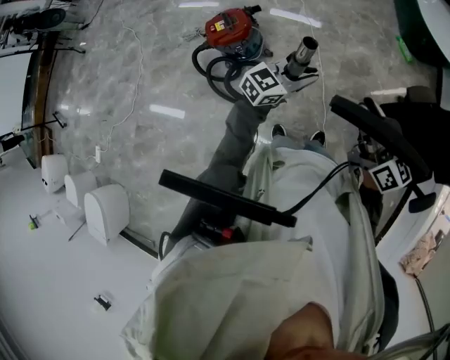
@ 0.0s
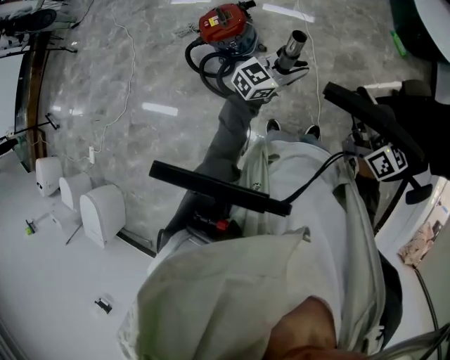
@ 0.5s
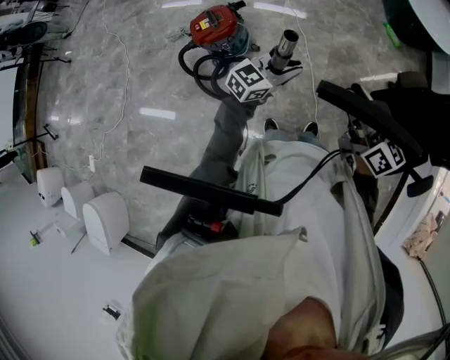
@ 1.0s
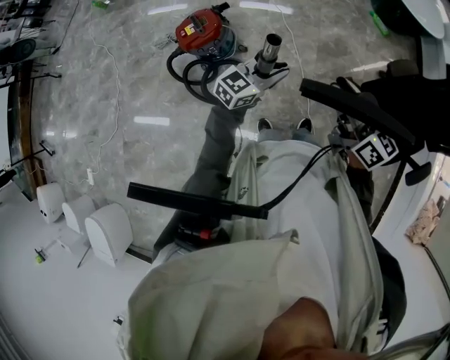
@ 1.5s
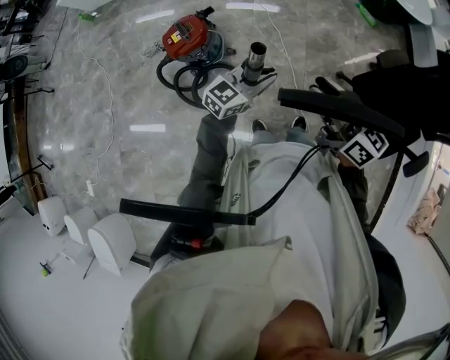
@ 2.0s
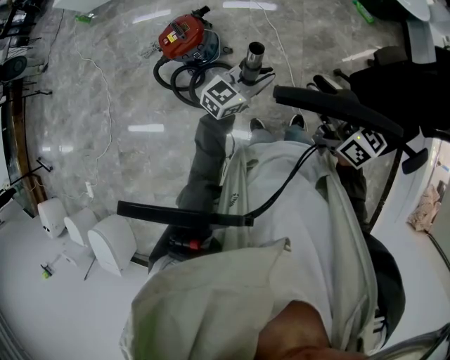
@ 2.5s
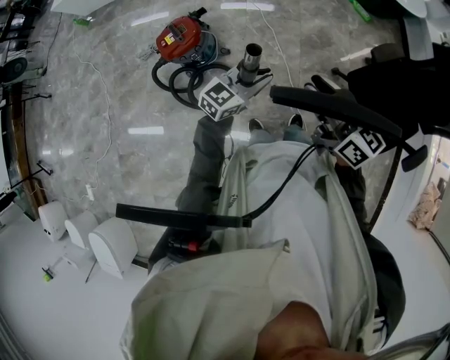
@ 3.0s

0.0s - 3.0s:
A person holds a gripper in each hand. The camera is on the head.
0.0s - 3.0s: The grippers stay close to where they were, moving slightly.

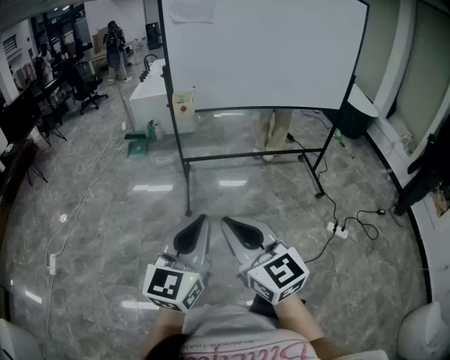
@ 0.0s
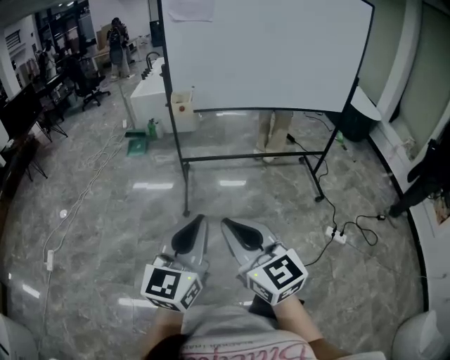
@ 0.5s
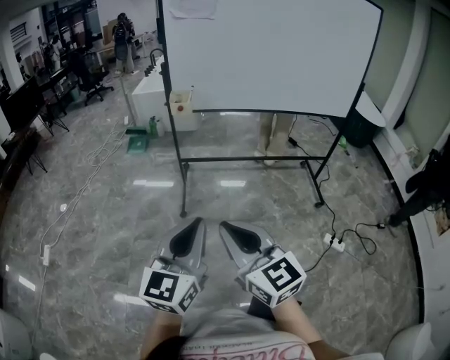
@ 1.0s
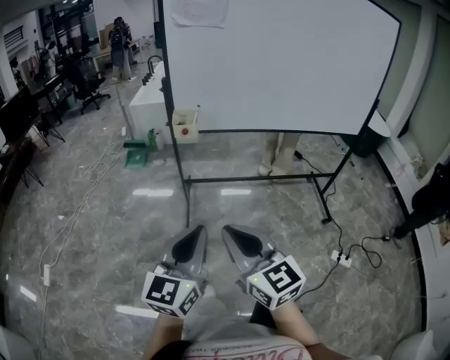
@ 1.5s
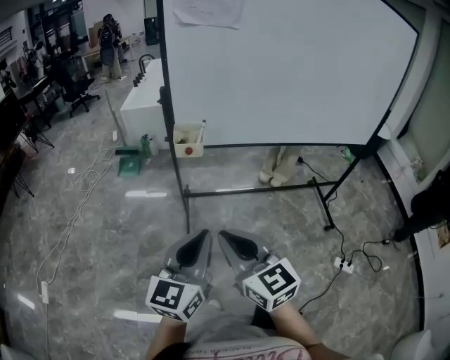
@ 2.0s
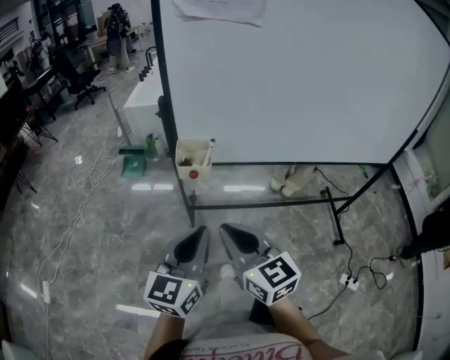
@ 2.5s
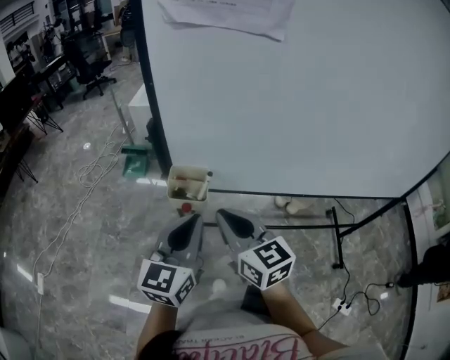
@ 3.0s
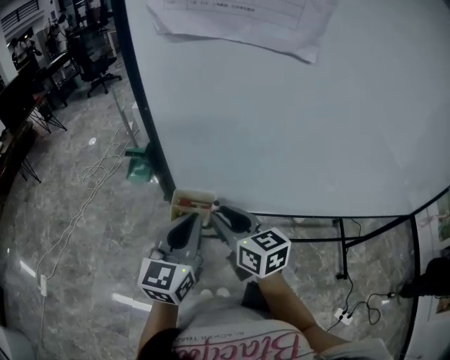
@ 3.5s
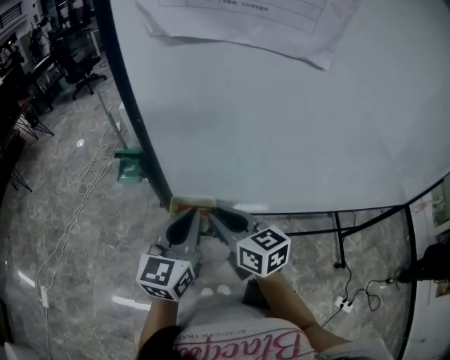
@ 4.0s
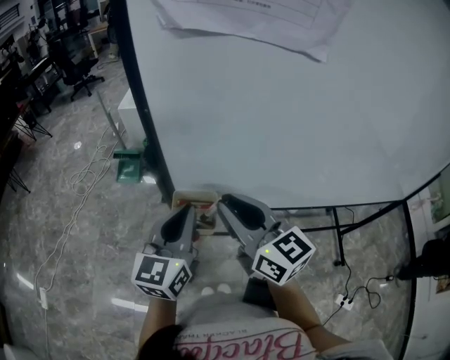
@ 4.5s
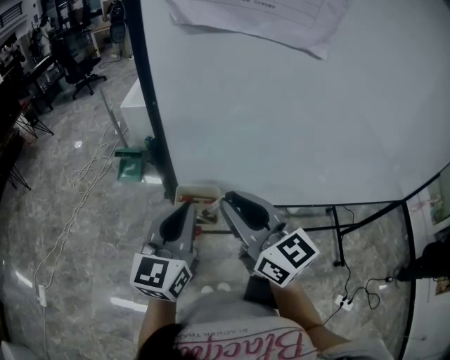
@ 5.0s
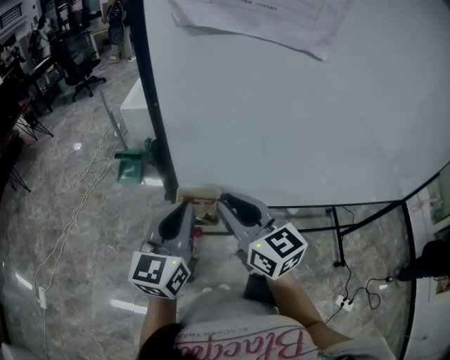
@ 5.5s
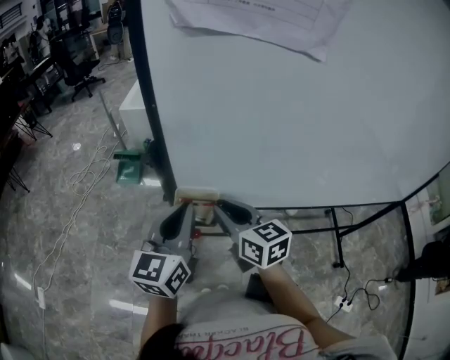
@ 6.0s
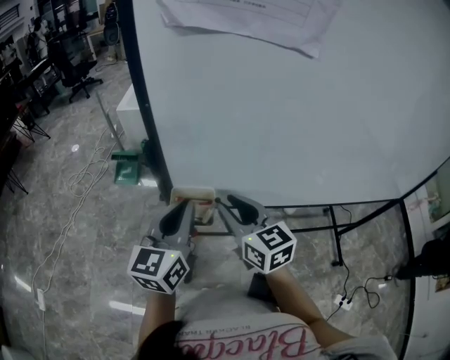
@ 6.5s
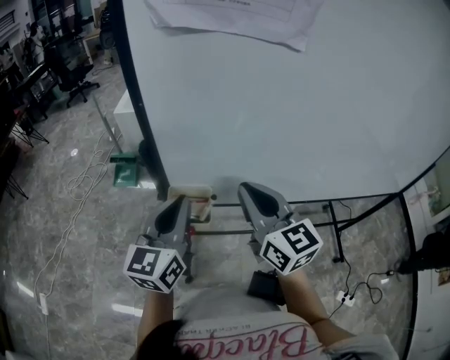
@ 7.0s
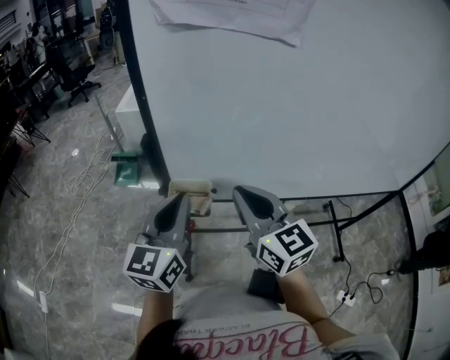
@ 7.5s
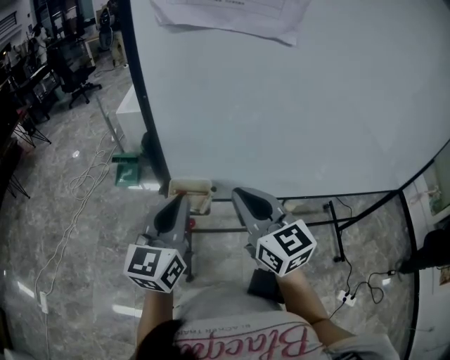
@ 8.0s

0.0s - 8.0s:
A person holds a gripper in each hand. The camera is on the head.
0.0s - 2.0s: Both grippers move forward, approximately 25 cm.
2.0s - 4.0s: Both grippers travel together forward, about 35 cm. The right gripper swivels roughly 20 degrees.
4.0s - 6.0s: The right gripper travels upward and back again, about 10 cm each way.
6.0s - 8.0s: The right gripper shifts approximately 10 cm upward.

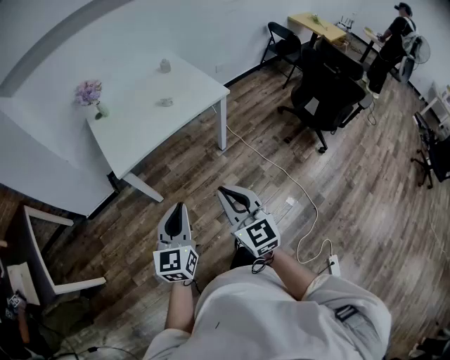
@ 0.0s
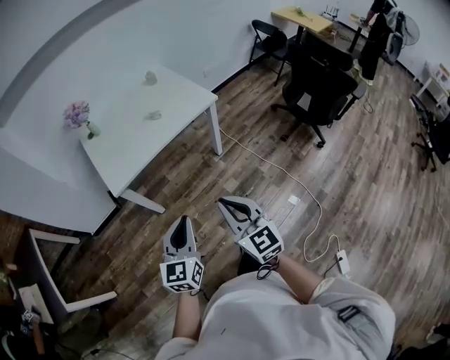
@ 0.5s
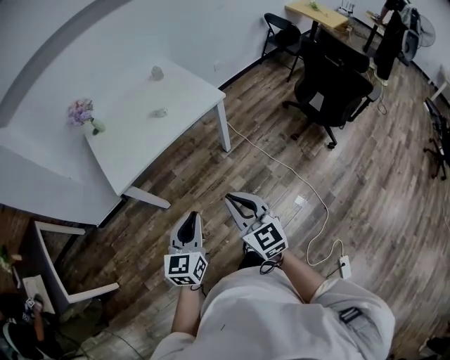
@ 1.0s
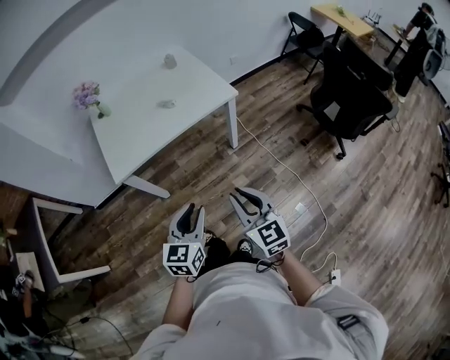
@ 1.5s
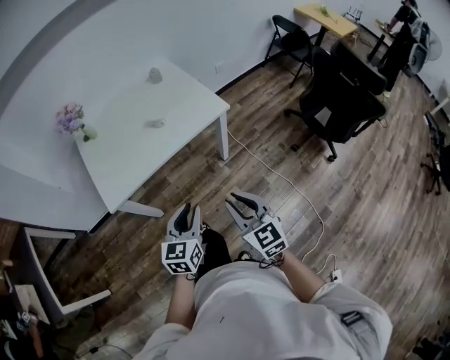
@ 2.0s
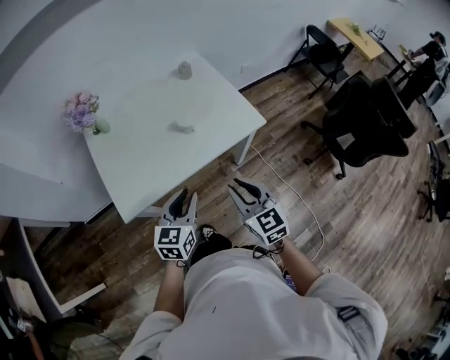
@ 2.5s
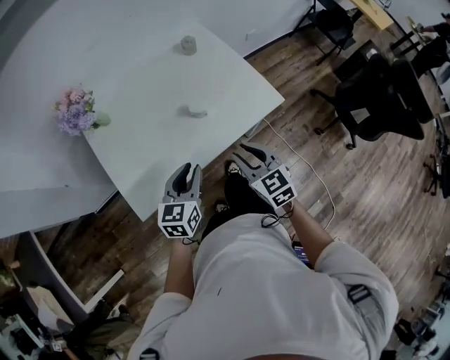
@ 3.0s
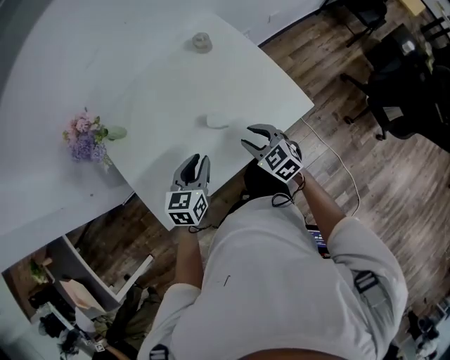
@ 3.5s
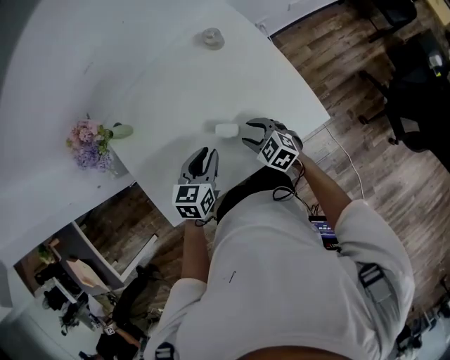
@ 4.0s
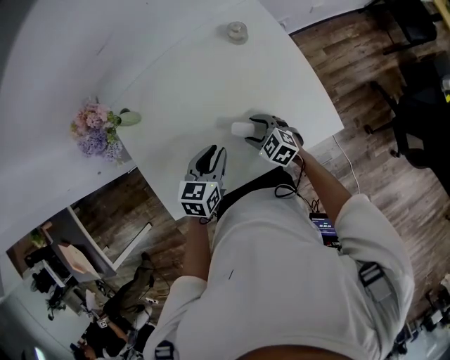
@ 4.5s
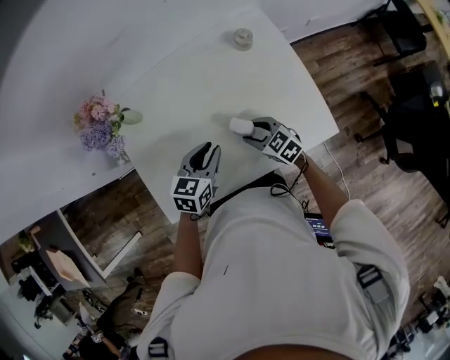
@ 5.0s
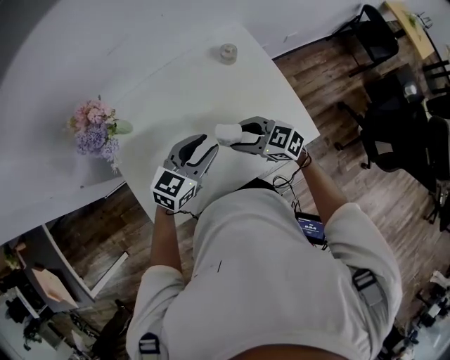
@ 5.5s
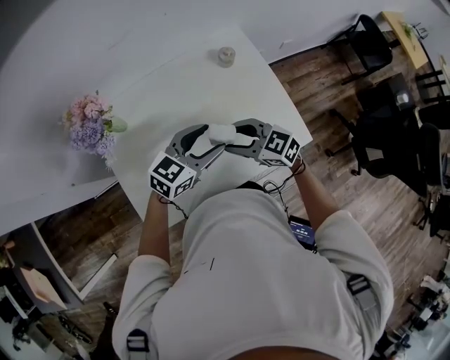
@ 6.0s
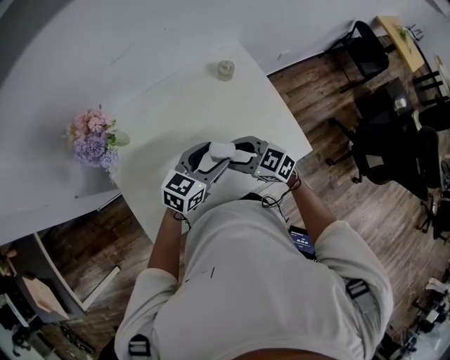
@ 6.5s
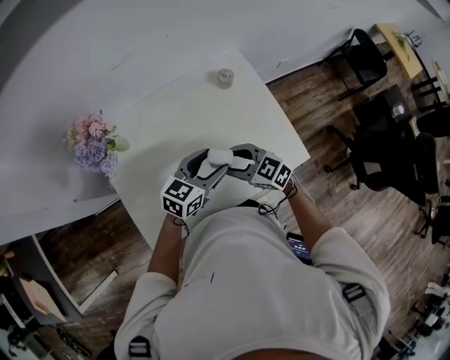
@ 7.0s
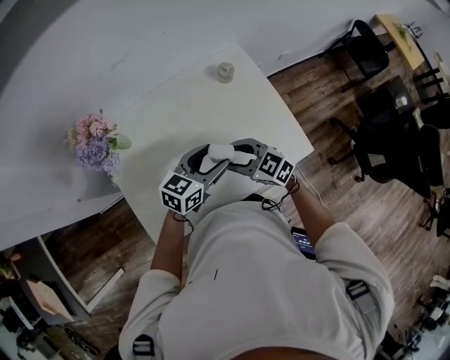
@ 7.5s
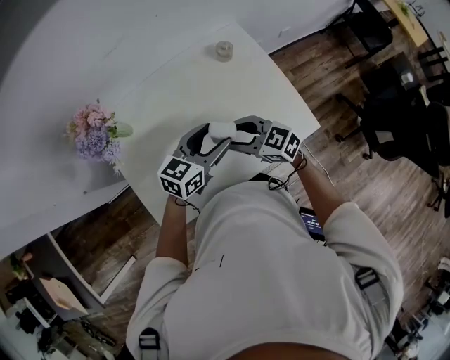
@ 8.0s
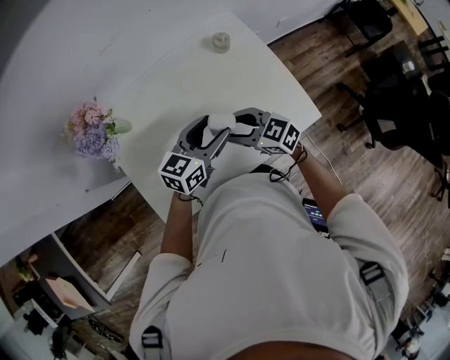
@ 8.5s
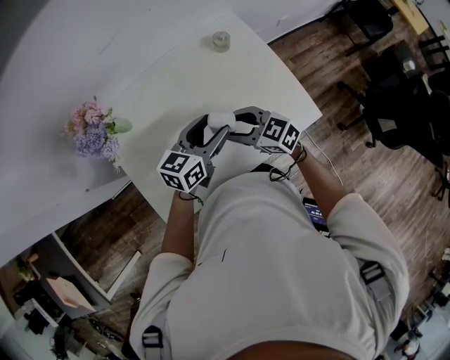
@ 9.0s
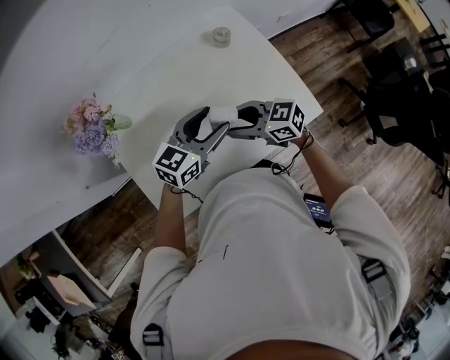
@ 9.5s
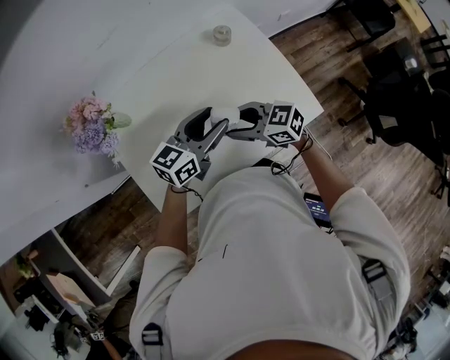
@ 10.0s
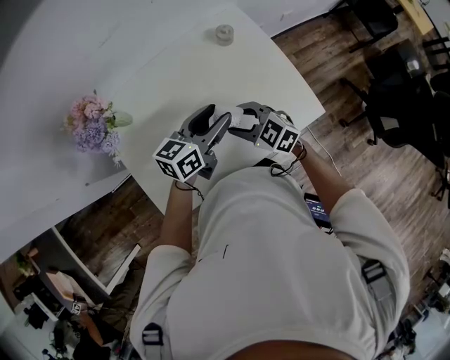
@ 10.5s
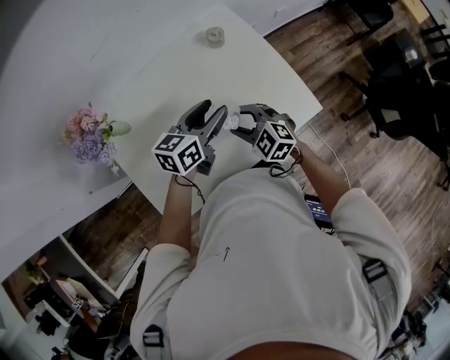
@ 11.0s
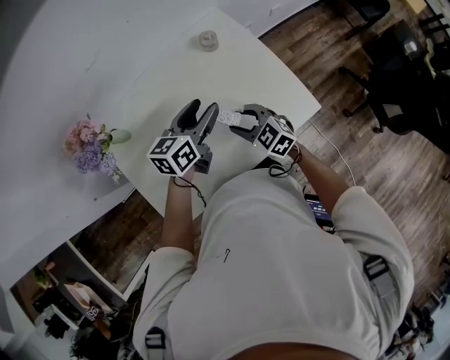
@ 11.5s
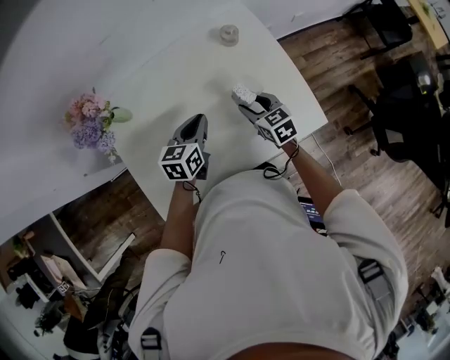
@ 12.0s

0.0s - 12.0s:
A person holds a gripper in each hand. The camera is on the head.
0.0s - 2.0s: Both grippers move forward, to the right and downward, approximately 25 cm.
2.0s - 4.0s: The pair of grippers is taken forward, approximately 50 cm. The right gripper travels downward by some 20 cm, changes its angle by approximately 40 degrees, and opens. The left gripper rotates approximately 20 degrees.
4.0s - 6.0s: The grippers both shift upward by about 10 cm. The left gripper turns by some 30 degrees, and opens; the right gripper swivels some 20 degrees.
6.0s - 8.0s: The grippers move only a little.
8.0s - 10.0s: The grippers stay close to where they were, moving slightly.
10.0s - 12.0s: The right gripper shifts by roughly 15 cm, and changes its angle by some 40 degrees, while the left gripper is displaced downward by roughly 10 cm, changes its angle by approximately 30 degrees, and closes up.

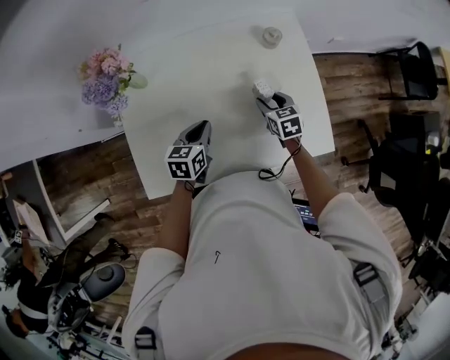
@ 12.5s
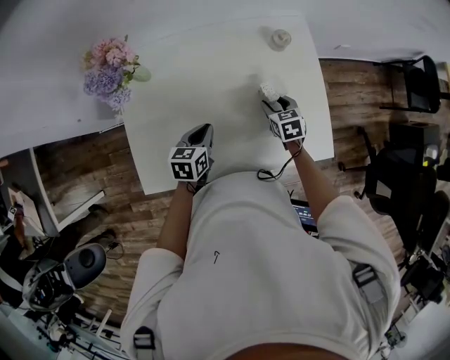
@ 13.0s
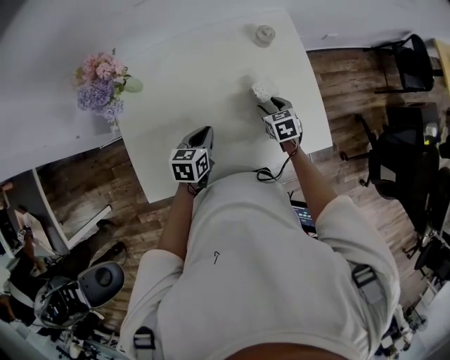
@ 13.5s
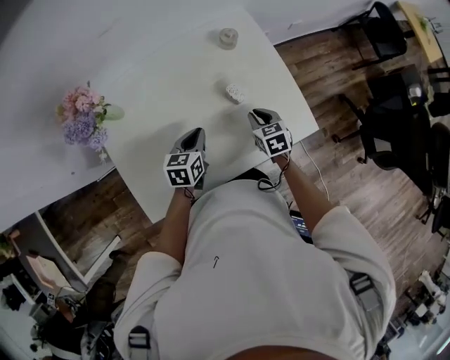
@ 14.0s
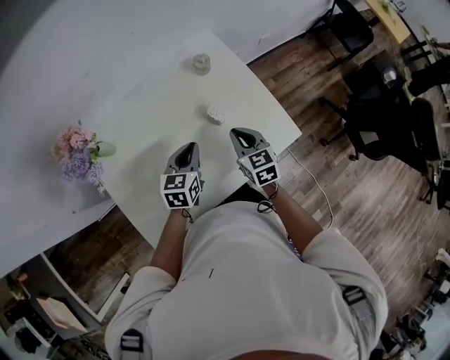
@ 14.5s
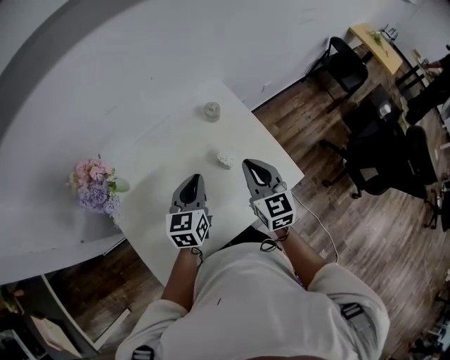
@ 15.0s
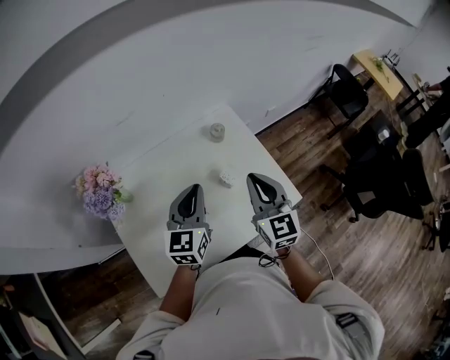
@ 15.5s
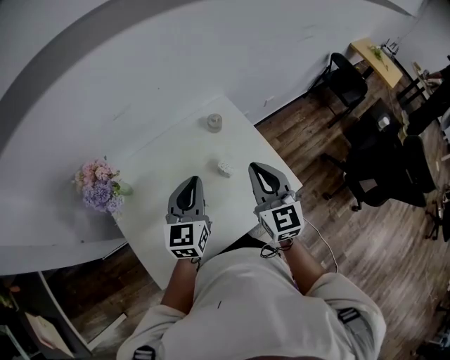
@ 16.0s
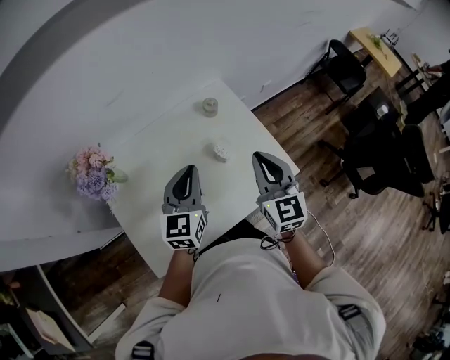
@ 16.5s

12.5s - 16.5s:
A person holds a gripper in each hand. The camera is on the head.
12.5s - 14.5s: The left gripper is displaced to the right and upward by approximately 10 cm, and changes its angle by approximately 20 degrees. Meanwhile the right gripper moves upward and backward, some 15 cm, rotates about 20 degrees, and closes.
14.5s - 16.5s: Both grippers move upward, roughly 20 cm. The right gripper changes its angle by roughly 20 degrees, while the left gripper swivels roughly 20 degrees.
